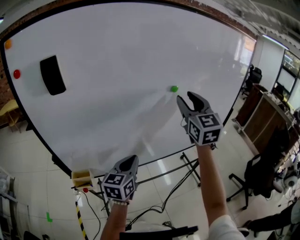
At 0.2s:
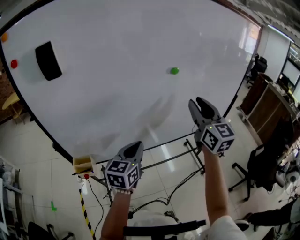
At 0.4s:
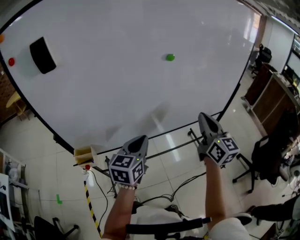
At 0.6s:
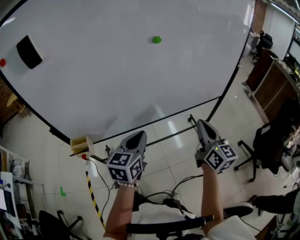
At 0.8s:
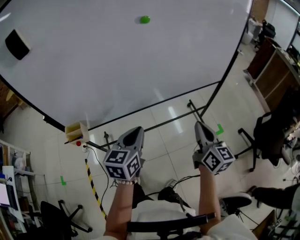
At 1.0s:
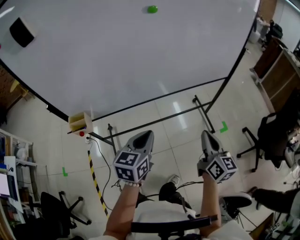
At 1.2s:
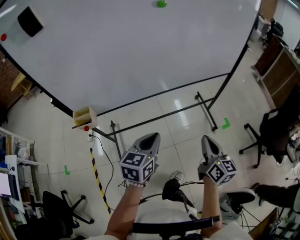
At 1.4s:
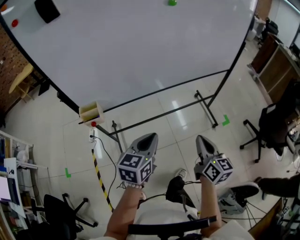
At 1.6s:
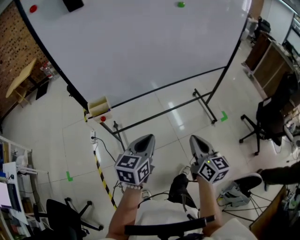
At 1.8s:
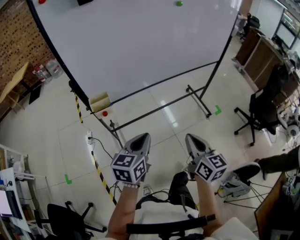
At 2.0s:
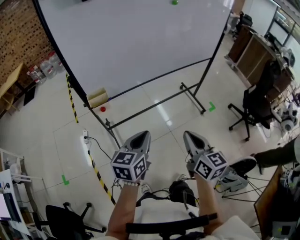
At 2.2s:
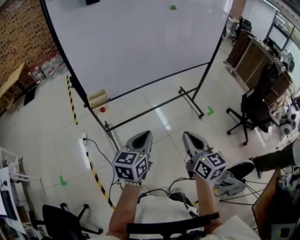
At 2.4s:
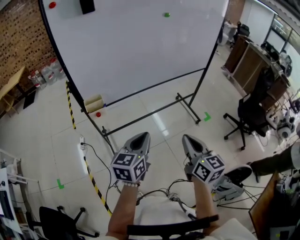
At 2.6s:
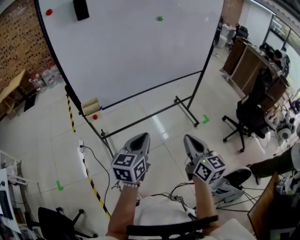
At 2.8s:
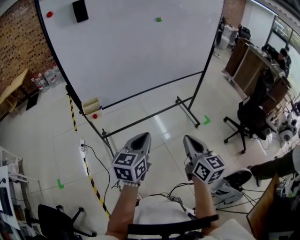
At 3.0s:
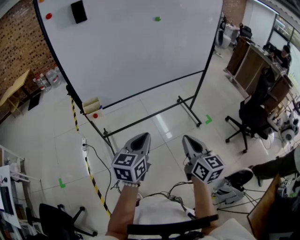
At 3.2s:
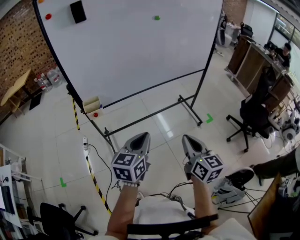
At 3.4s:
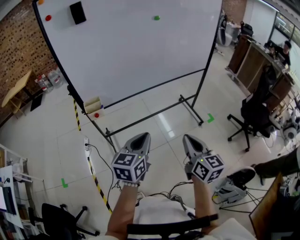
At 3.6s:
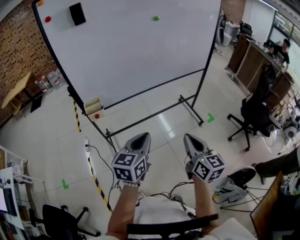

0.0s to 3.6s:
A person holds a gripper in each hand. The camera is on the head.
0.0s to 1.8s: The left gripper travels backward by roughly 30 cm. Meanwhile the right gripper goes about 60 cm backward and downward, changes its angle by roughly 40 degrees, and closes its fingers.
1.8s to 3.6s: The two grippers go approximately 15 cm to the right, backward and upward.

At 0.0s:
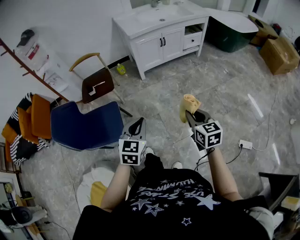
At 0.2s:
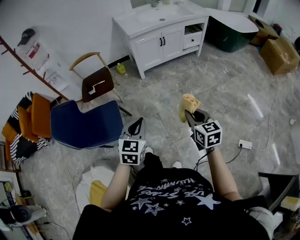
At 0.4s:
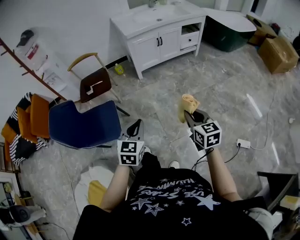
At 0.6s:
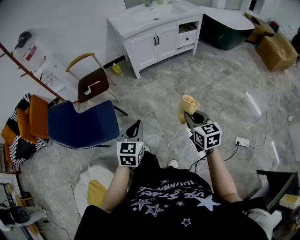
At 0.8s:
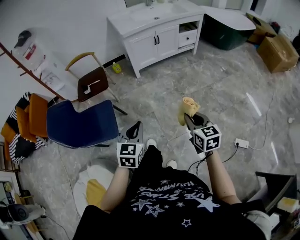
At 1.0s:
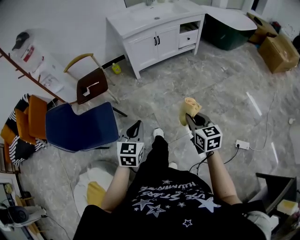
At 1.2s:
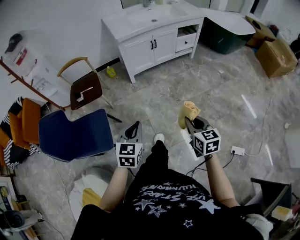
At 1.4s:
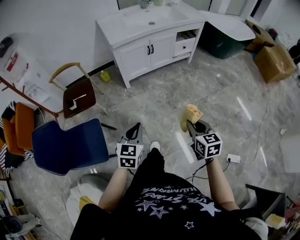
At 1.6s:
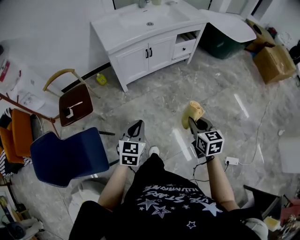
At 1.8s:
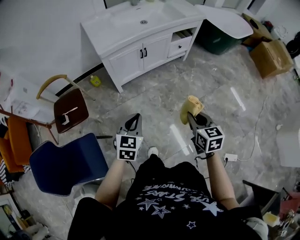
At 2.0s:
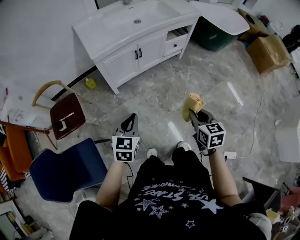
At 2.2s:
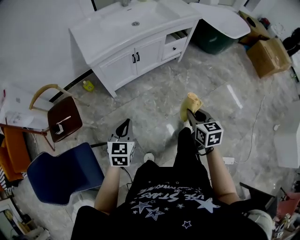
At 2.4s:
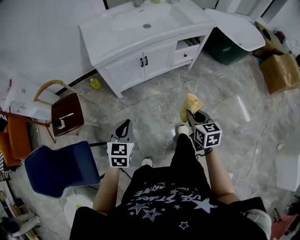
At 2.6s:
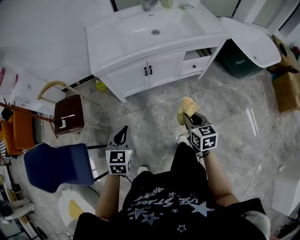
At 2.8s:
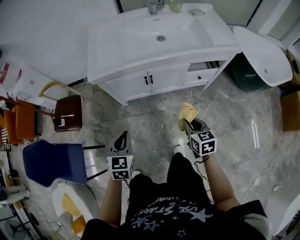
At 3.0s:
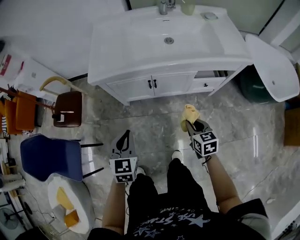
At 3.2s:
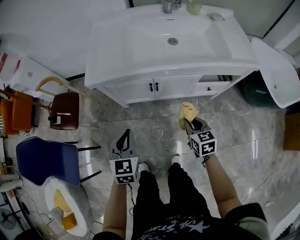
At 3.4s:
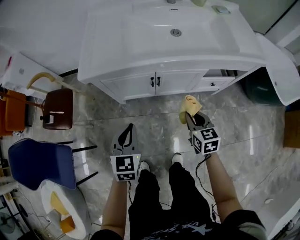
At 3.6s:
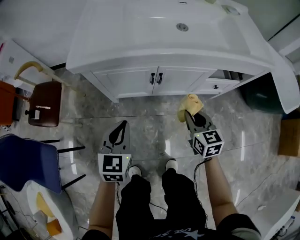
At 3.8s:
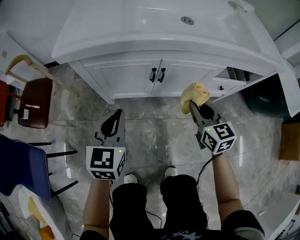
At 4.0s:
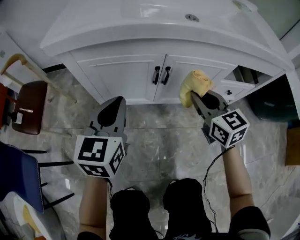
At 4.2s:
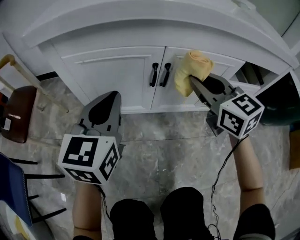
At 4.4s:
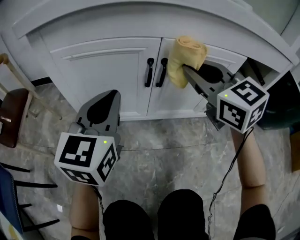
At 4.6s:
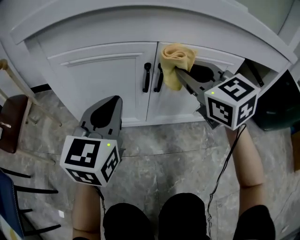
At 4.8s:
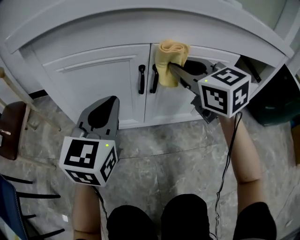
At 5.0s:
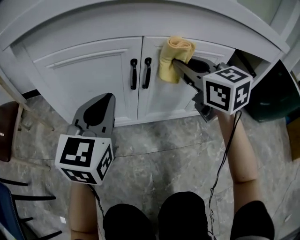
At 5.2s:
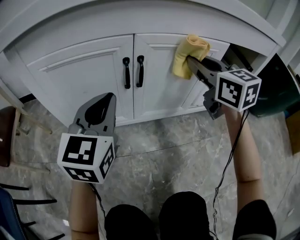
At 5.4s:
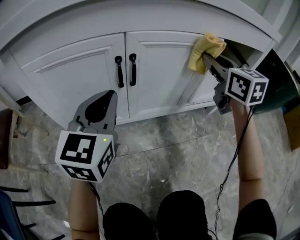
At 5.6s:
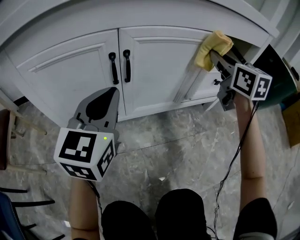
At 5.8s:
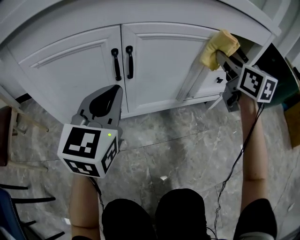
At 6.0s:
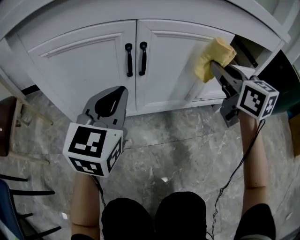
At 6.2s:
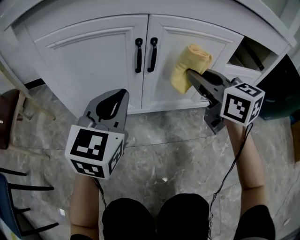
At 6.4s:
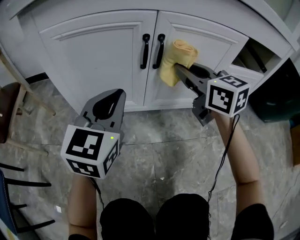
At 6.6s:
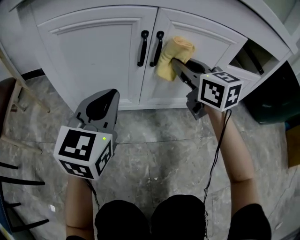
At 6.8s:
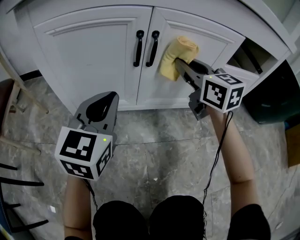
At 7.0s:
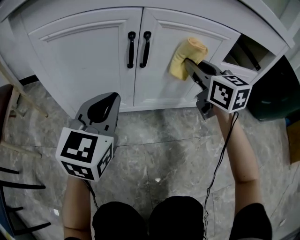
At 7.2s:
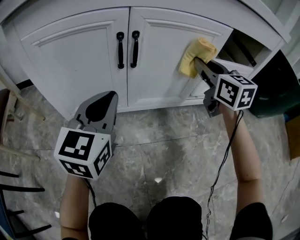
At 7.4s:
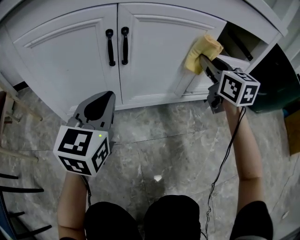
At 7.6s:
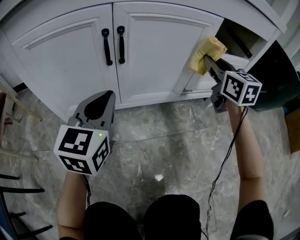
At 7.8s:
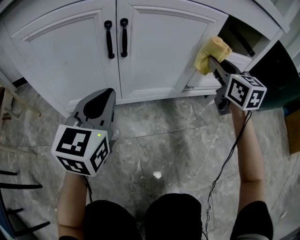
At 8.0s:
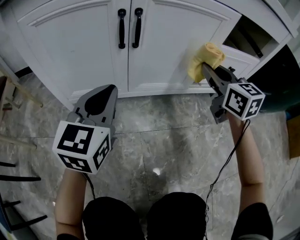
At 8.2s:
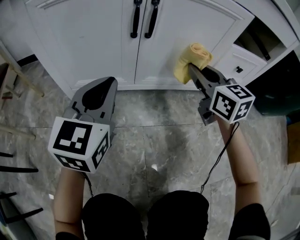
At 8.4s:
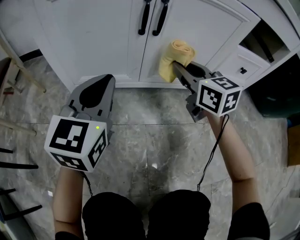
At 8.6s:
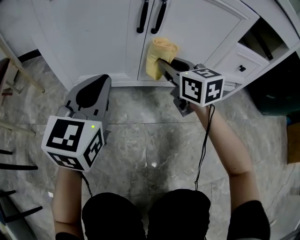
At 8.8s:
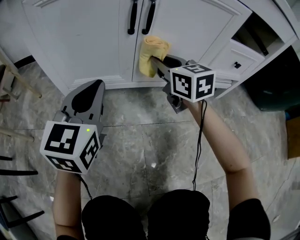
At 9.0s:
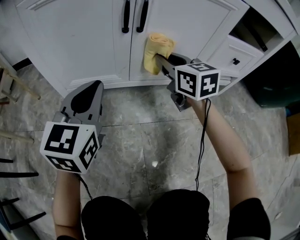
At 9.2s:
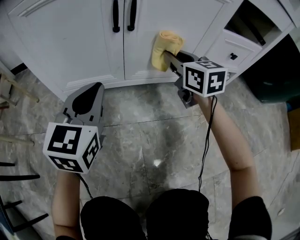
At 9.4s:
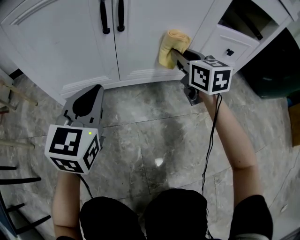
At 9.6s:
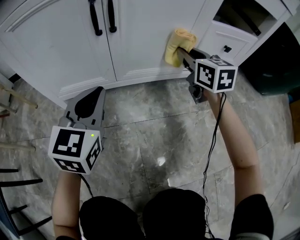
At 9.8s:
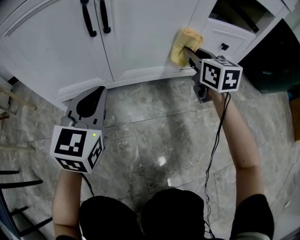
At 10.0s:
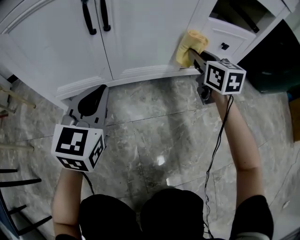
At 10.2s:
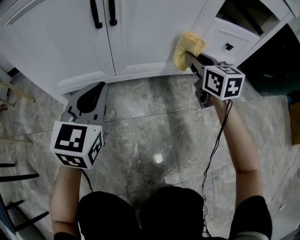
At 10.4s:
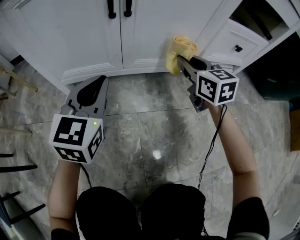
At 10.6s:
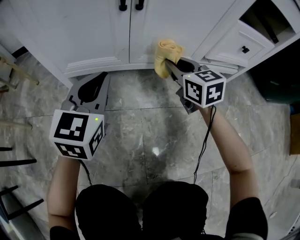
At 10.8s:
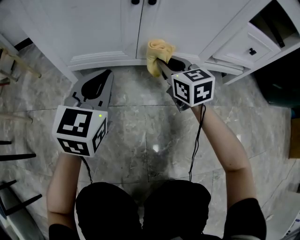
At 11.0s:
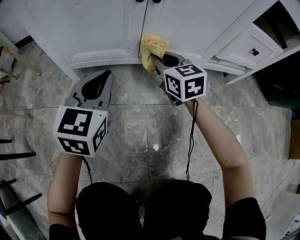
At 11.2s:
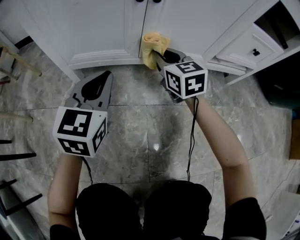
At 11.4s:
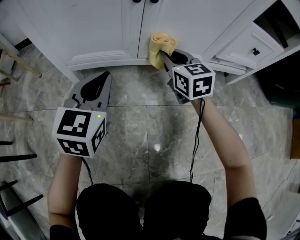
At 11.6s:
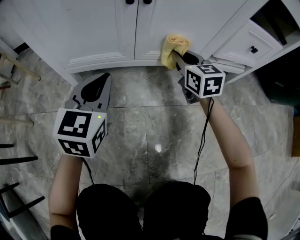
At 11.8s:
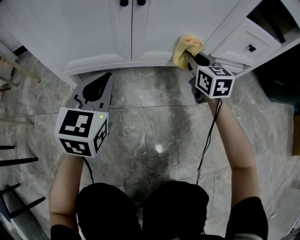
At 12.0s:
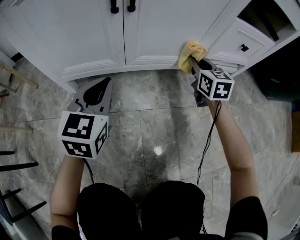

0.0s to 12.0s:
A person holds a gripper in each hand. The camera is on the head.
0.0s to 1.6s: The left gripper is displaced forward by some 30 cm. The right gripper travels forward and to the right by some 25 cm.
1.6s to 3.0s: The left gripper changes place by approximately 40 cm, and changes its angle by roughly 30 degrees. Meanwhile the right gripper changes place by about 50 cm, and turns by some 30 degrees.
3.0s to 4.4s: The right gripper travels forward and downward by roughly 30 cm, and turns by approximately 40 degrees. The left gripper heads downward and forward, covering roughly 35 cm, and rotates some 20 degrees.
4.4s to 6.0s: The left gripper heads to the right, covering about 5 cm, while the right gripper goes some 15 cm to the right, and rotates roughly 20 degrees.
6.0s to 7.6s: The right gripper moves to the right and downward, roughly 10 cm, while the left gripper moves downward, some 5 cm.
7.6s to 9.0s: The right gripper shifts about 25 cm to the left and downward, and changes its angle by some 20 degrees. Meanwhile the left gripper is displaced to the left by some 5 cm.
9.0s to 10.4s: The left gripper moves about 5 cm. The right gripper moves to the right, some 10 cm.
10.4s to 12.0s: The right gripper is displaced downward by roughly 5 cm, and travels to the left and back again, roughly 15 cm each way.

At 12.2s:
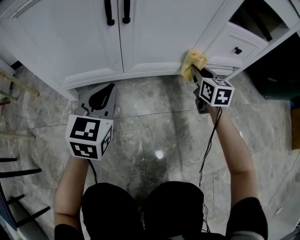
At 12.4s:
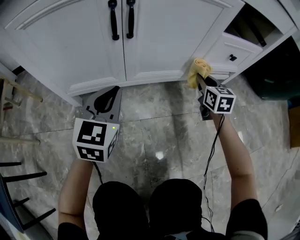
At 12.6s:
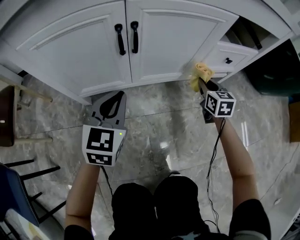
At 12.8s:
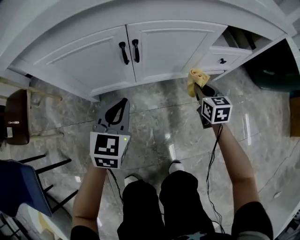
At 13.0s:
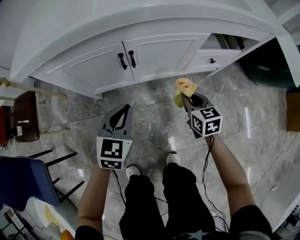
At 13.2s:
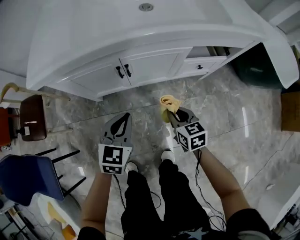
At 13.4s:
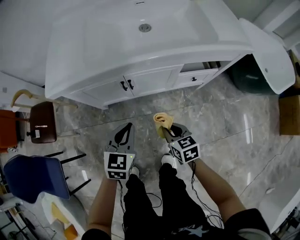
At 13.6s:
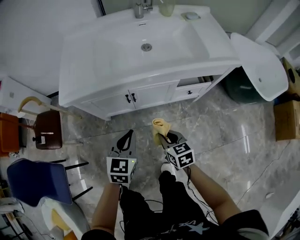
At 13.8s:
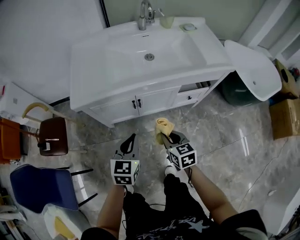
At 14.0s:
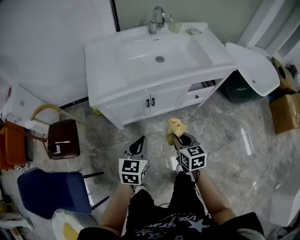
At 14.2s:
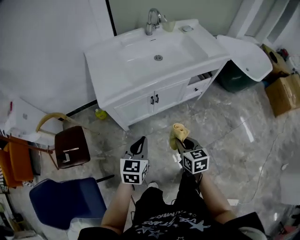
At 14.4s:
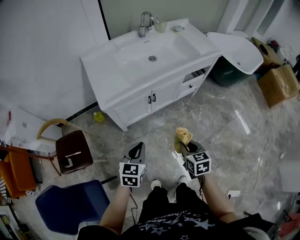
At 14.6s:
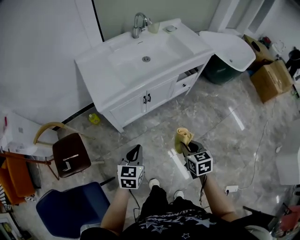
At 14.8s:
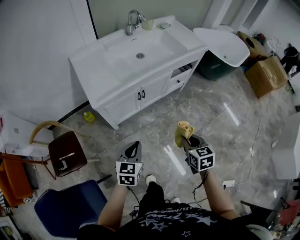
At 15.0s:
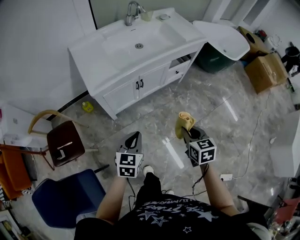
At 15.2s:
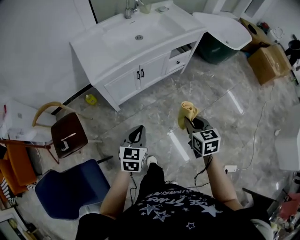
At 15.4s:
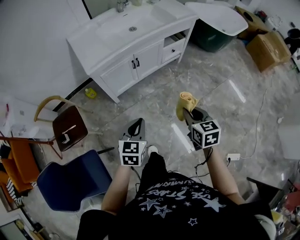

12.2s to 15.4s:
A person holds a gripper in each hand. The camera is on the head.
12.2s to 13.8s: The right gripper is displaced upward and backward by approximately 50 cm, while the left gripper moves upward, some 50 cm.
13.8s to 15.4s: The left gripper ends up roughly 30 cm from where it was, and swivels about 20 degrees; the right gripper ends up roughly 35 cm from where it was, and turns by some 30 degrees.

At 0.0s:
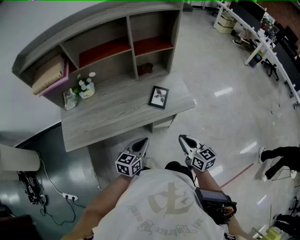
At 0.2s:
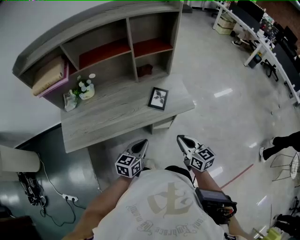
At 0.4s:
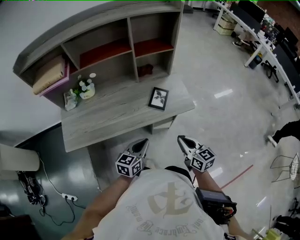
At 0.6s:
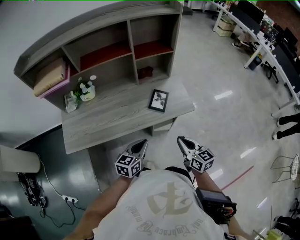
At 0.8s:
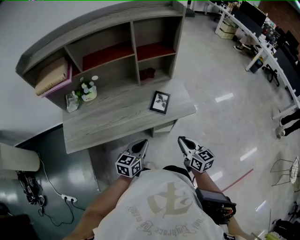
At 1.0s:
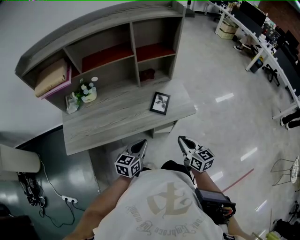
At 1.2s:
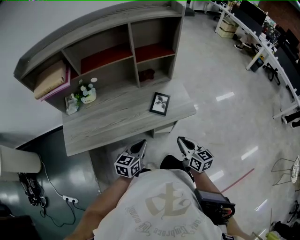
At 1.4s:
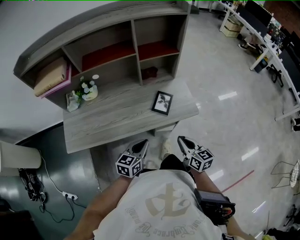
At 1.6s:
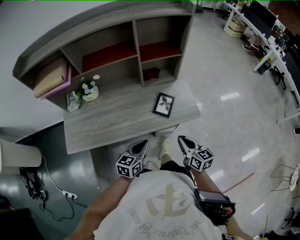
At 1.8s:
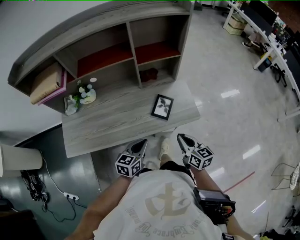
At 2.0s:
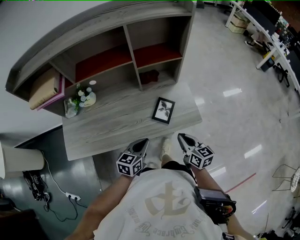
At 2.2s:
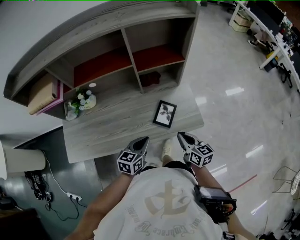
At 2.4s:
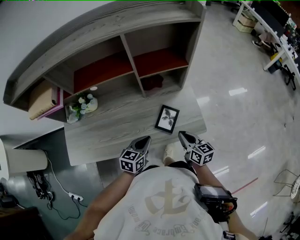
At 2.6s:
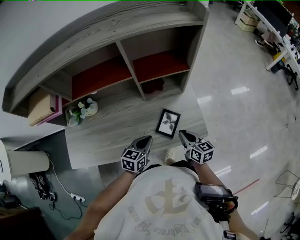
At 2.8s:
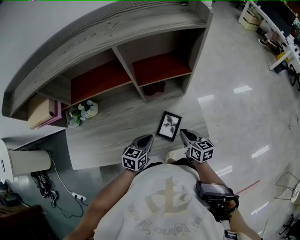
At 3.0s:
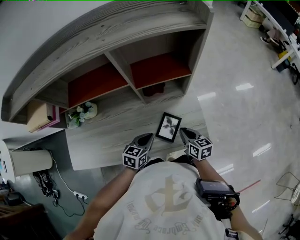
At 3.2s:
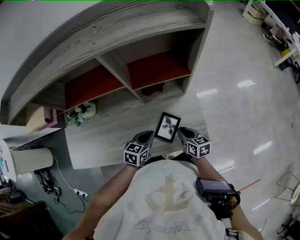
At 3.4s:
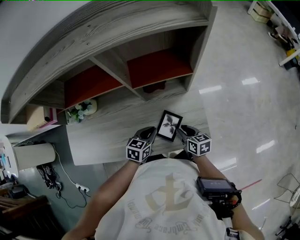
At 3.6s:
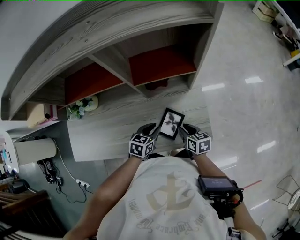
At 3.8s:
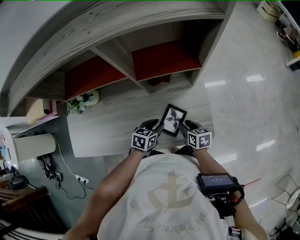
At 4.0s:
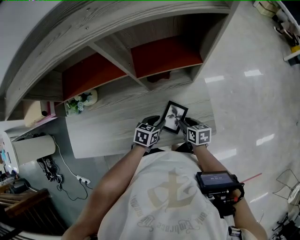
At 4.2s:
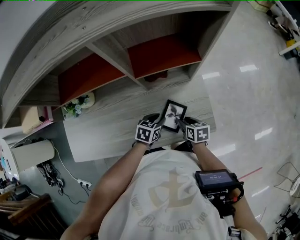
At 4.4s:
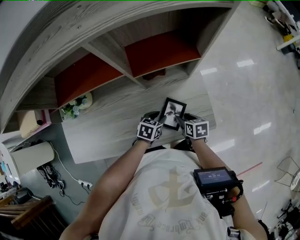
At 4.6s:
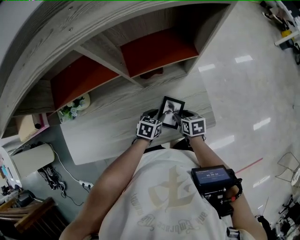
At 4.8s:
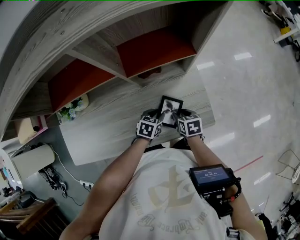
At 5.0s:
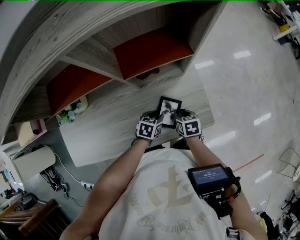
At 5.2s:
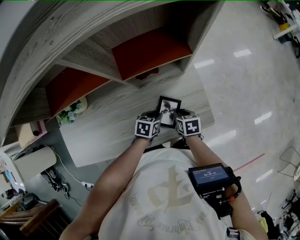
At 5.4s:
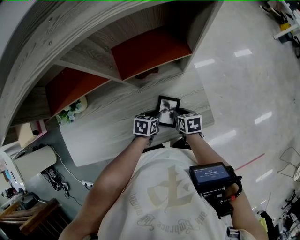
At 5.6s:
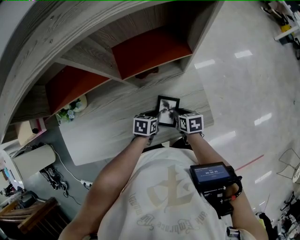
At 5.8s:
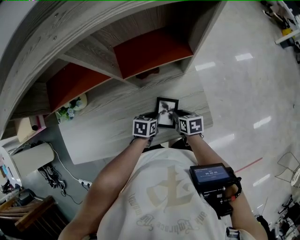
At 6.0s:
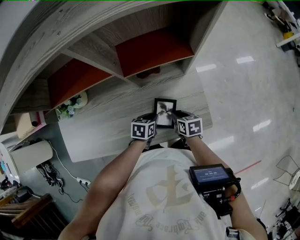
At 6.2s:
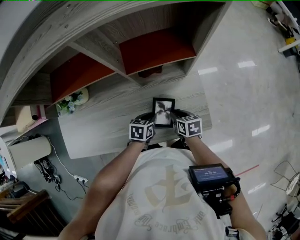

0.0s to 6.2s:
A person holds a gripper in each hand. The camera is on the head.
0.0s to 1.6s: The right gripper goes approximately 5 cm forward, while the left gripper changes place by approximately 5 cm.
1.6s to 3.2s: The right gripper is displaced forward and downward by some 30 cm. Meanwhile the left gripper shifts about 25 cm forward.
3.2s to 4.6s: Both grippers move downward, about 10 cm. The right gripper swivels some 20 degrees, and opens its fingers; the left gripper opens.
4.6s to 6.2s: The right gripper closes up.
